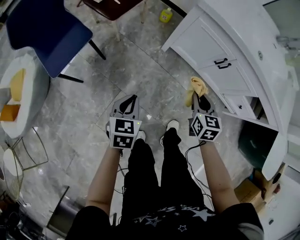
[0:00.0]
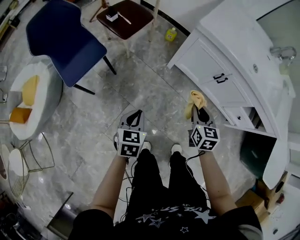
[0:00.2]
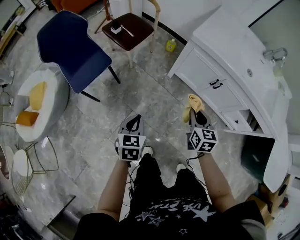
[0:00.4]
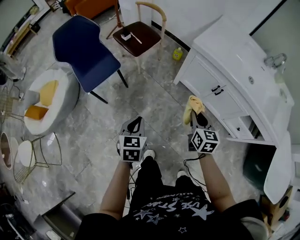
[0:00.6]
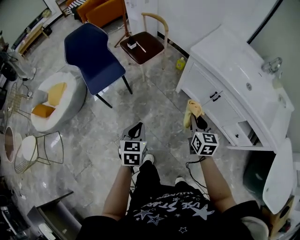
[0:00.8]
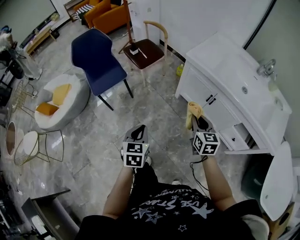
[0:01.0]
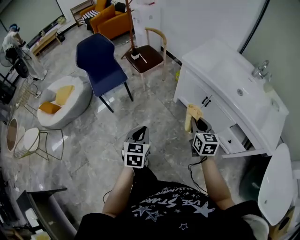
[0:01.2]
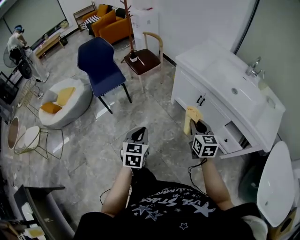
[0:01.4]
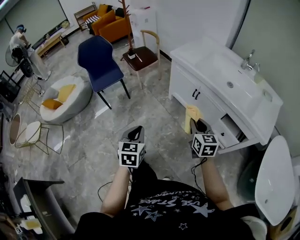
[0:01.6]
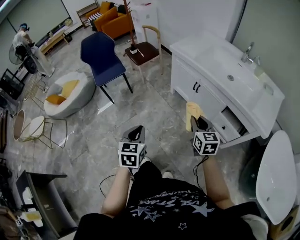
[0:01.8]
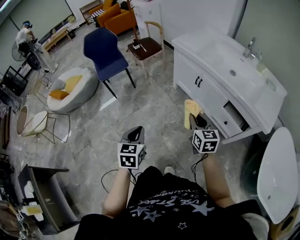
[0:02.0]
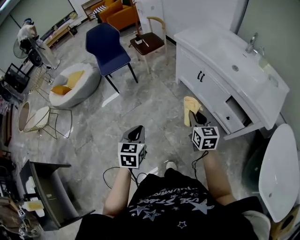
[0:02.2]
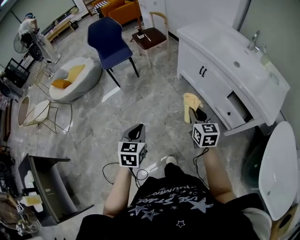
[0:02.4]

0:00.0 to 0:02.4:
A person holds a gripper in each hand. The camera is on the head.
0:00.0 to 0:01.2: The left gripper moves upward, backward and to the right, about 35 cm, and rotates approximately 20 degrees. The right gripper travels upward and backward by approximately 25 cm, and swivels about 20 degrees.
0:01.2 to 0:02.4: The grippers both shift backward by about 25 cm.

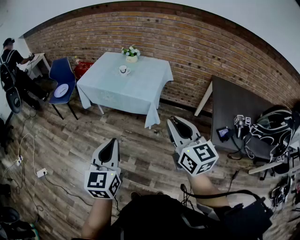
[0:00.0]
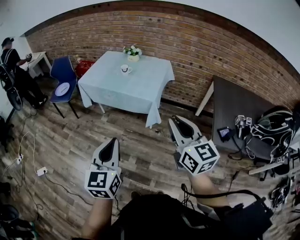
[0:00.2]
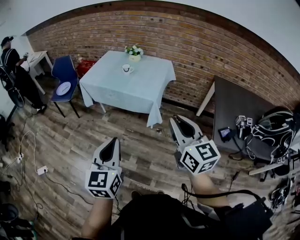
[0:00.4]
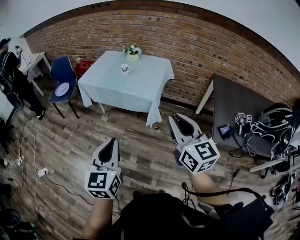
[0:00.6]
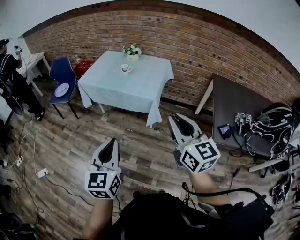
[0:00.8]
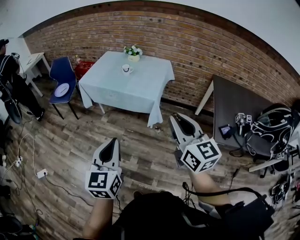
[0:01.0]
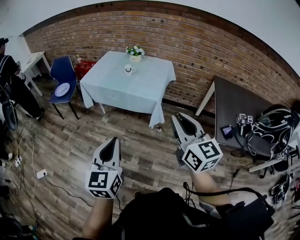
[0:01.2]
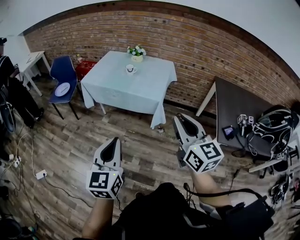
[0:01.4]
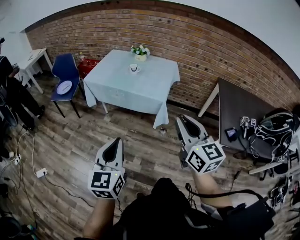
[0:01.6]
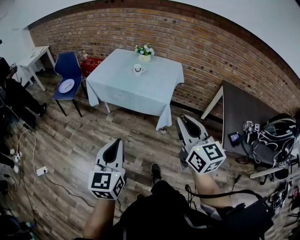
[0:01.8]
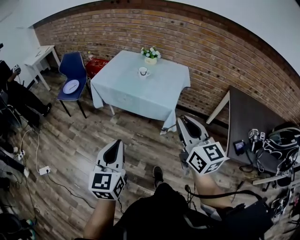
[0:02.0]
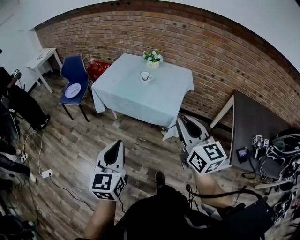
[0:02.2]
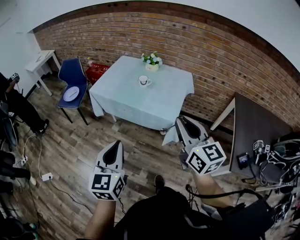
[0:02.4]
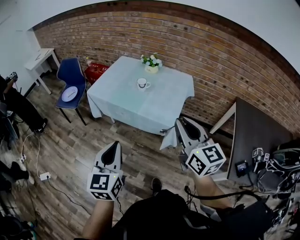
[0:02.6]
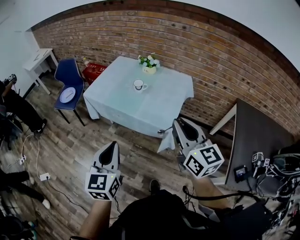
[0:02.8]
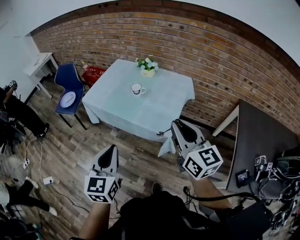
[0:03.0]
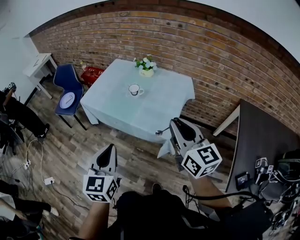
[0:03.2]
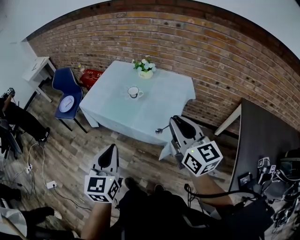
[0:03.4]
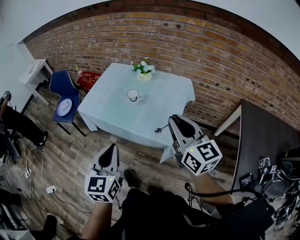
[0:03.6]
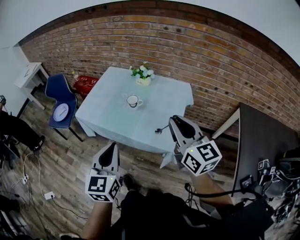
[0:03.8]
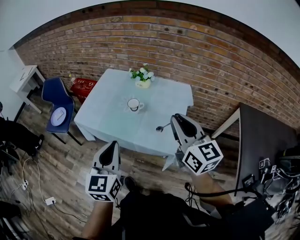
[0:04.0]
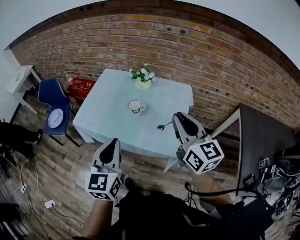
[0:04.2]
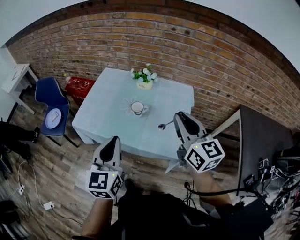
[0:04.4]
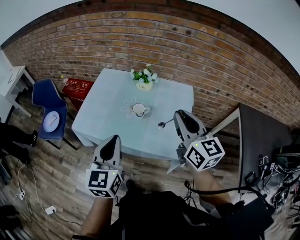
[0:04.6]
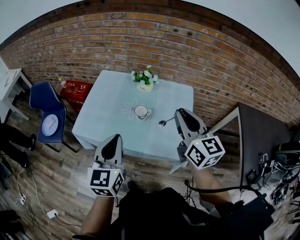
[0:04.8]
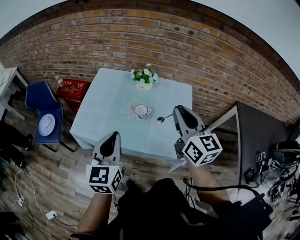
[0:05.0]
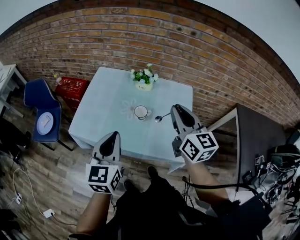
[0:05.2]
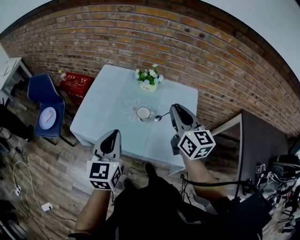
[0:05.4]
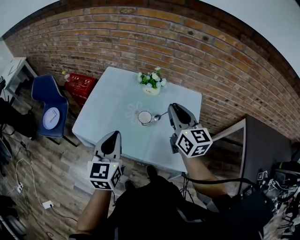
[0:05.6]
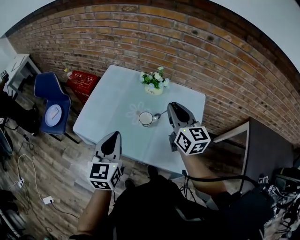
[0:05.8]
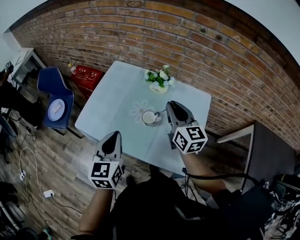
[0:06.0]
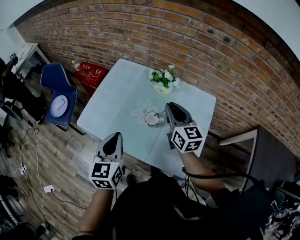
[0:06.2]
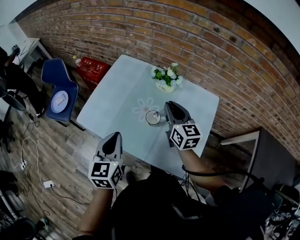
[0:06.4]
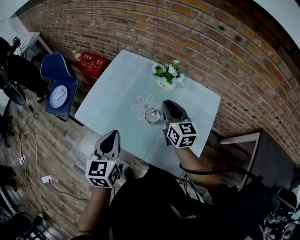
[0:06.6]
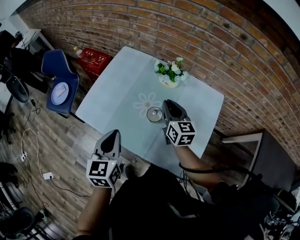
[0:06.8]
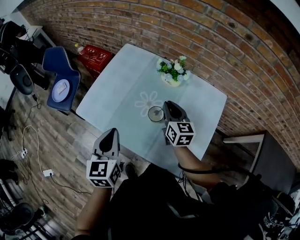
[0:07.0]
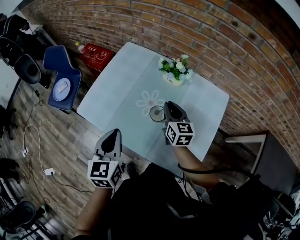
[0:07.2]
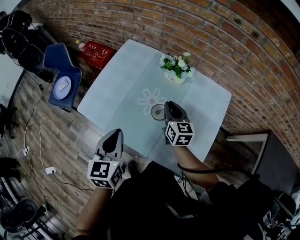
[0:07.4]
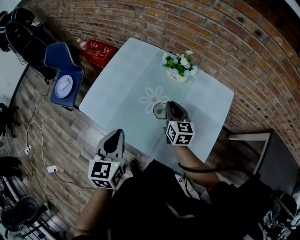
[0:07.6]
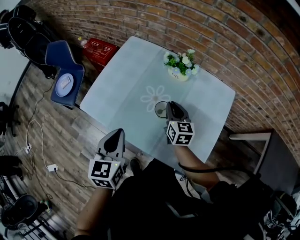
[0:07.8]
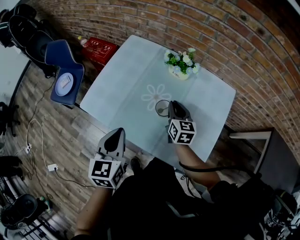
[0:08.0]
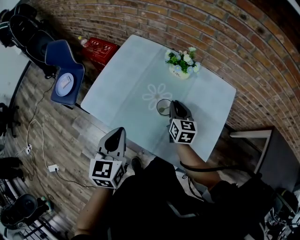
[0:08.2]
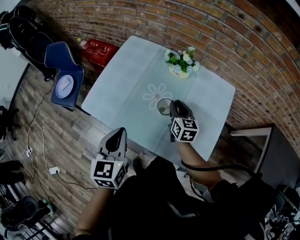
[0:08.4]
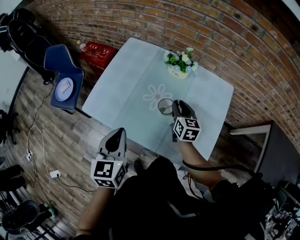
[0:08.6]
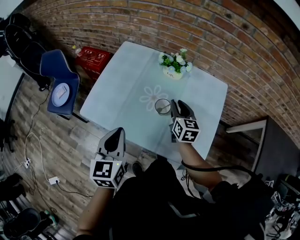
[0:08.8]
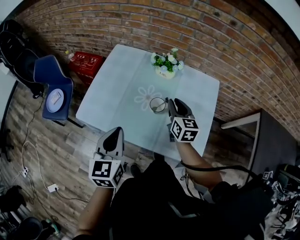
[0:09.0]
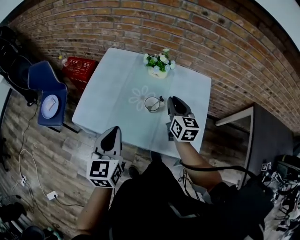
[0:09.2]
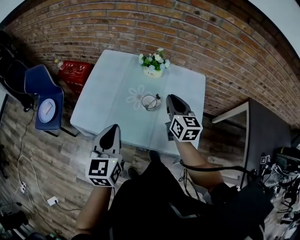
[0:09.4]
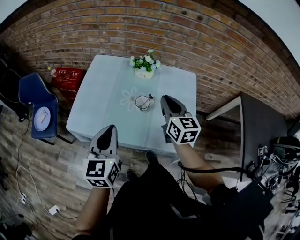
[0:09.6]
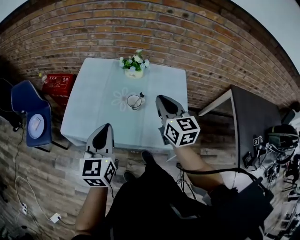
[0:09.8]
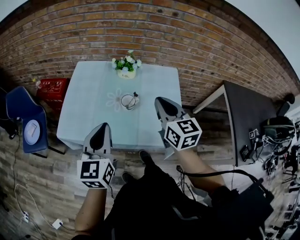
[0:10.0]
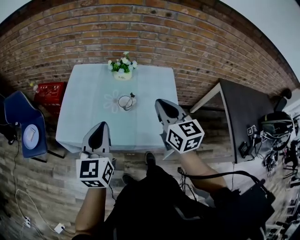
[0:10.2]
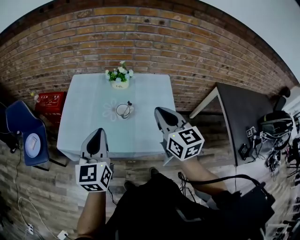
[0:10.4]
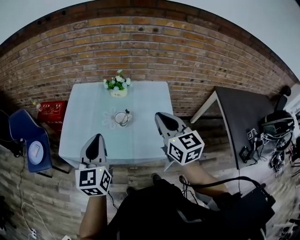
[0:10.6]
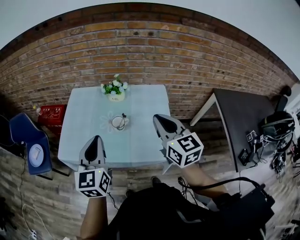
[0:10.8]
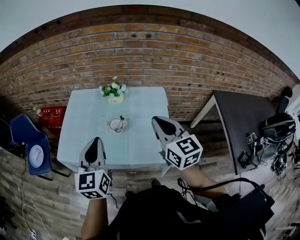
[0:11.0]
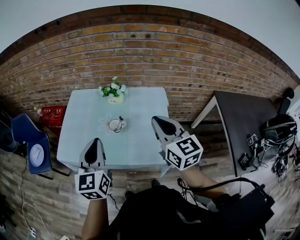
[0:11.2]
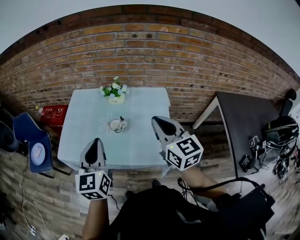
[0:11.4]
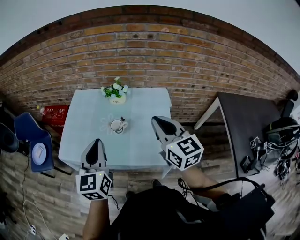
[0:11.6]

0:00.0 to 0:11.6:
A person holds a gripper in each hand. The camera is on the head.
0:00.0 to 0:01.4: The grippers both shift to the left by roughly 5 cm.
0:01.4 to 0:02.8: Both grippers travel together forward, some 25 cm.
0:02.8 to 0:04.4: Both grippers travel together forward, approximately 25 cm.
0:04.4 to 0:05.8: The two grippers go roughly 15 cm forward.
0:05.8 to 0:07.2: The right gripper is displaced downward and forward by about 20 cm; the left gripper heads downward, covering about 5 cm.
0:07.2 to 0:08.8: The grippers make only small movements.
0:08.8 to 0:10.2: The left gripper shifts approximately 5 cm upward, and rotates about 20 degrees. Meanwhile the right gripper moves upward and backward, about 25 cm, and closes.
0:10.2 to 0:11.6: The left gripper moves to the right, roughly 5 cm, while the right gripper travels to the right and upward by about 10 cm.

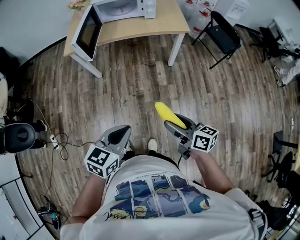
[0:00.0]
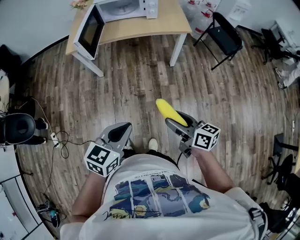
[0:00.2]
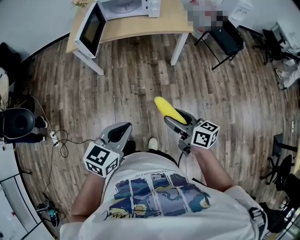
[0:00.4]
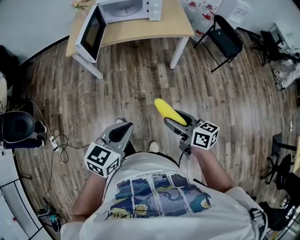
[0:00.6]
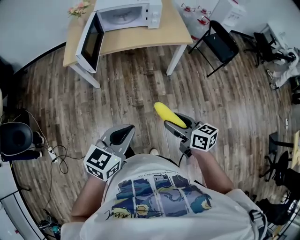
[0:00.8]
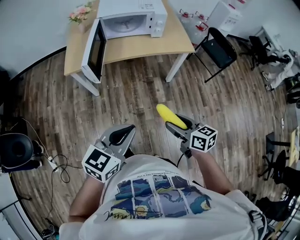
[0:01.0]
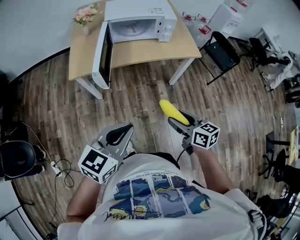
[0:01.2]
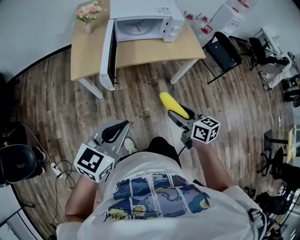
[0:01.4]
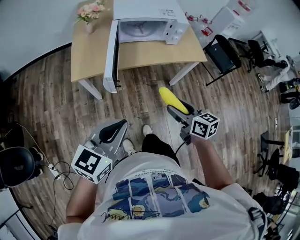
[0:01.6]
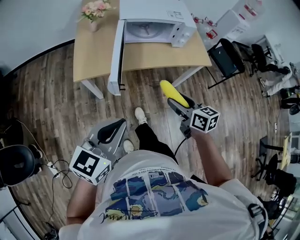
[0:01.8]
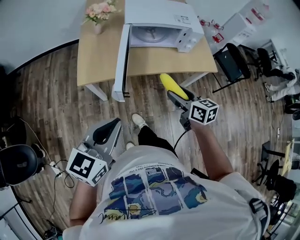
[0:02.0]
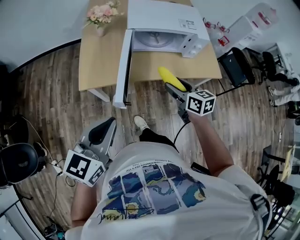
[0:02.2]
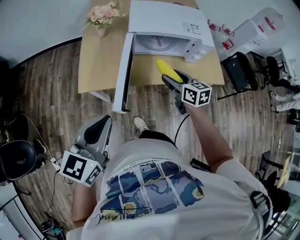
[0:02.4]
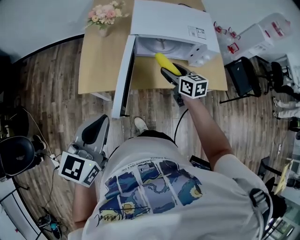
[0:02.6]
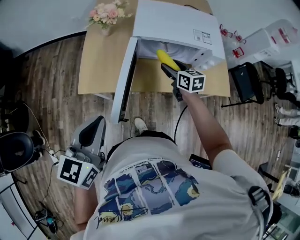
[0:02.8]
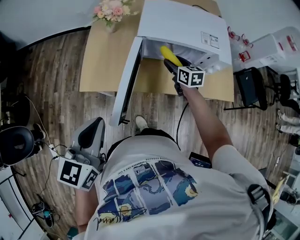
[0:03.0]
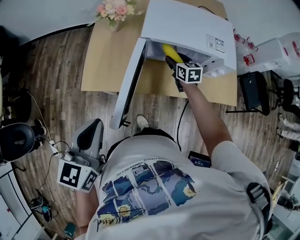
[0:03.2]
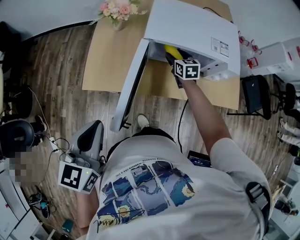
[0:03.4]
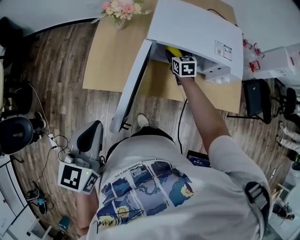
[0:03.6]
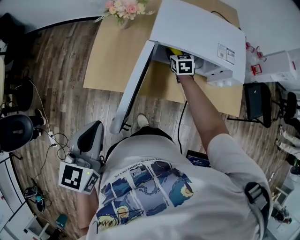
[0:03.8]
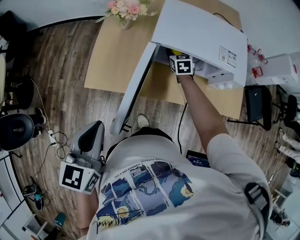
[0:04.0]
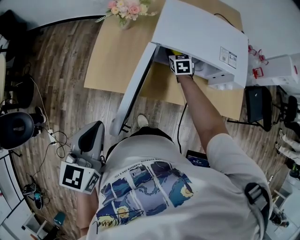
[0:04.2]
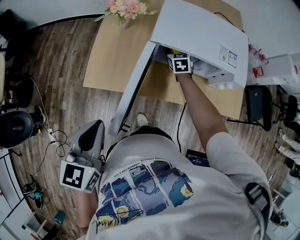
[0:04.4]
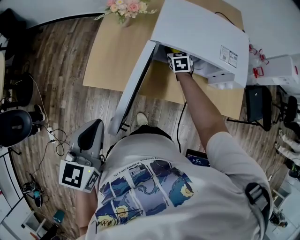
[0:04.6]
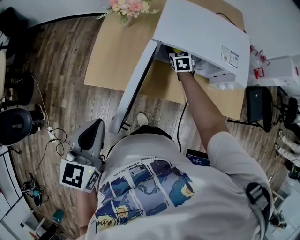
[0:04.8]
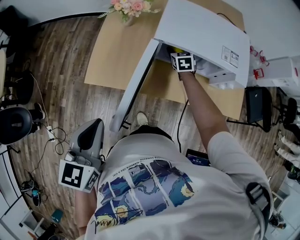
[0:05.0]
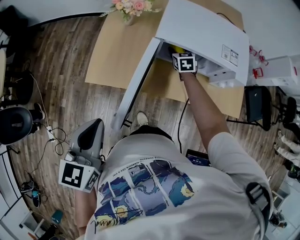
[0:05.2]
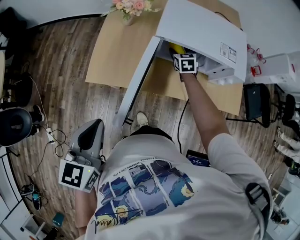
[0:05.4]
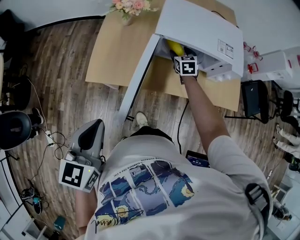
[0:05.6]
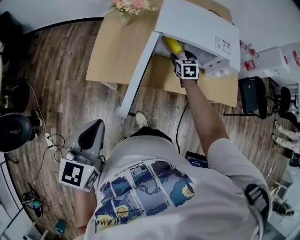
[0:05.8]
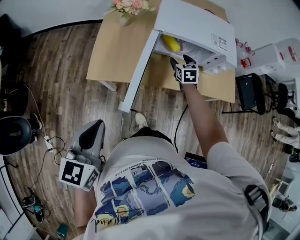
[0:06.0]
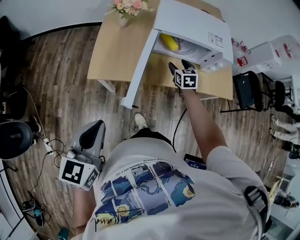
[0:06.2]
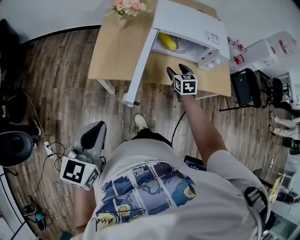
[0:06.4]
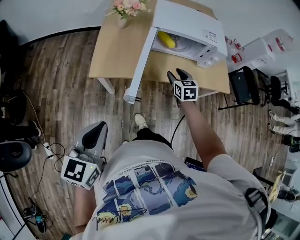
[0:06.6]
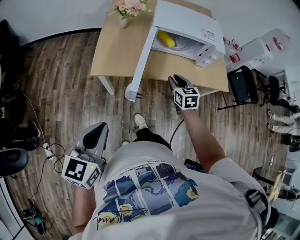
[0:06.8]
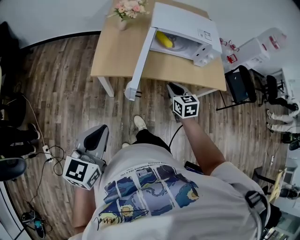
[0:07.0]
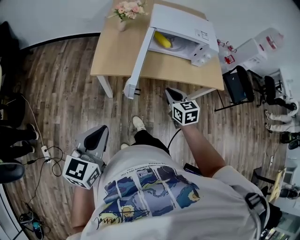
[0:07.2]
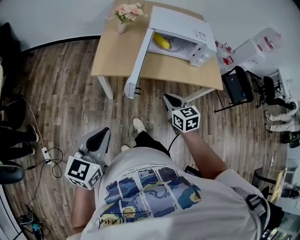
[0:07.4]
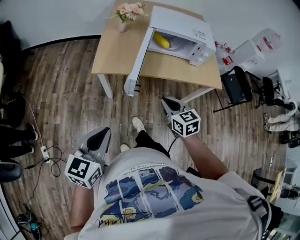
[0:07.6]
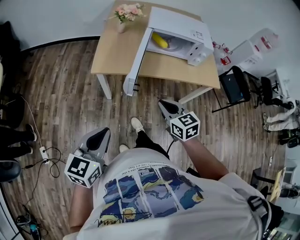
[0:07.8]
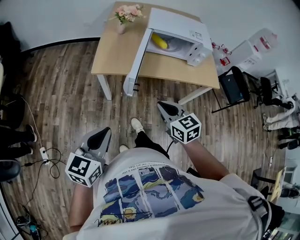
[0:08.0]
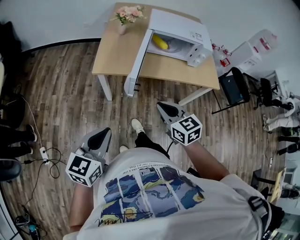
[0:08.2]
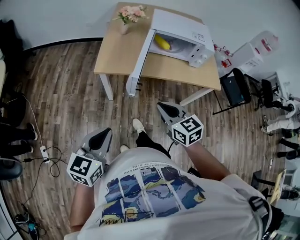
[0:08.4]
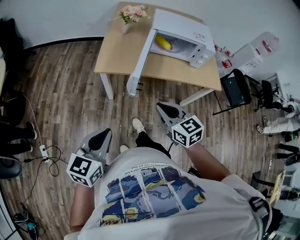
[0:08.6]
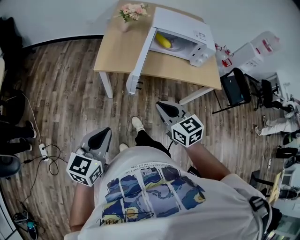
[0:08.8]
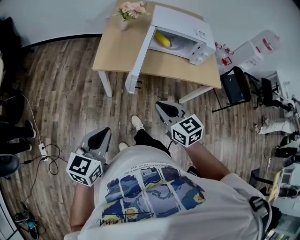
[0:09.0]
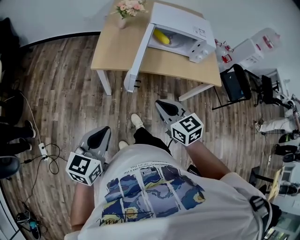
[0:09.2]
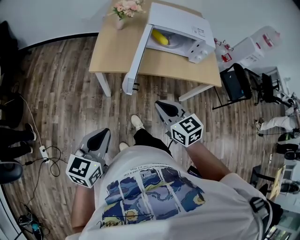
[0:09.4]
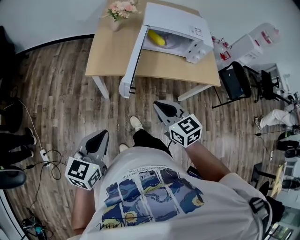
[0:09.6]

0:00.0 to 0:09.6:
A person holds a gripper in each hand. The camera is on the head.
0:00.0 to 0:01.6: The left gripper shifts roughly 35 cm to the left and forward. The right gripper travels forward and to the left by roughly 35 cm, and rotates some 20 degrees.
0:01.6 to 0:03.2: The left gripper goes roughly 20 cm forward, and turns by roughly 30 degrees. Meanwhile the right gripper shifts roughly 50 cm forward.
0:03.2 to 0:04.8: The right gripper goes some 10 cm forward.
0:04.8 to 0:06.4: The right gripper is displaced backward by approximately 20 cm, while the left gripper is displaced backward by about 15 cm.
0:06.4 to 0:08.0: The left gripper is displaced backward by about 15 cm, while the right gripper is displaced backward by about 30 cm, turns by about 20 degrees, and closes its fingers.
0:08.0 to 0:09.6: The grippers move only a little.
